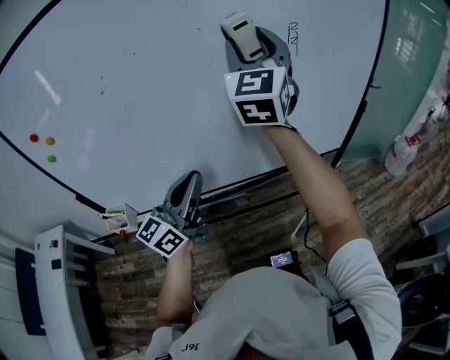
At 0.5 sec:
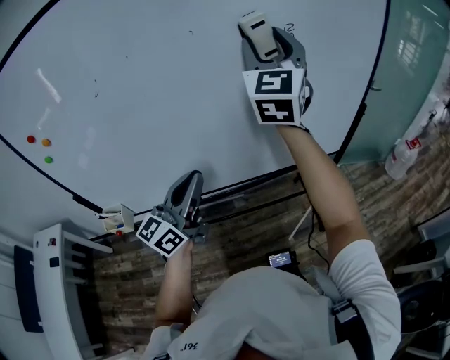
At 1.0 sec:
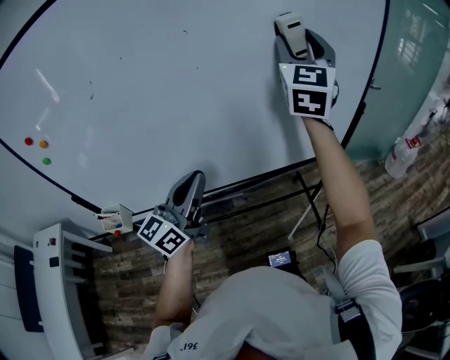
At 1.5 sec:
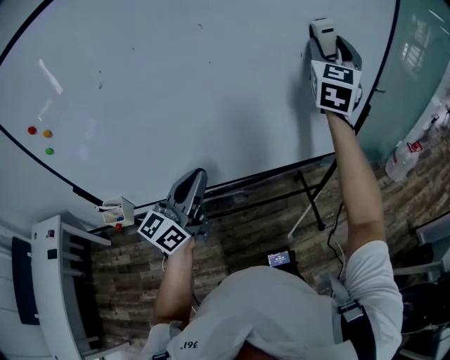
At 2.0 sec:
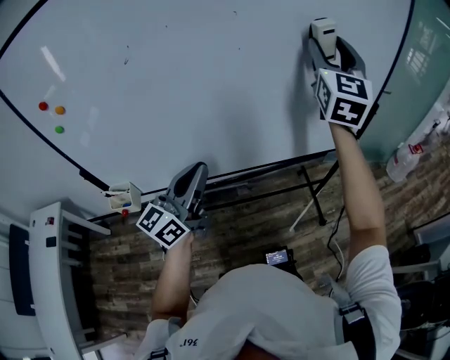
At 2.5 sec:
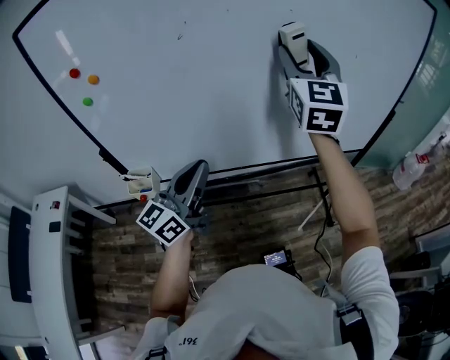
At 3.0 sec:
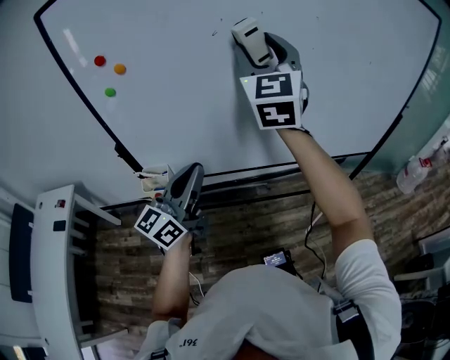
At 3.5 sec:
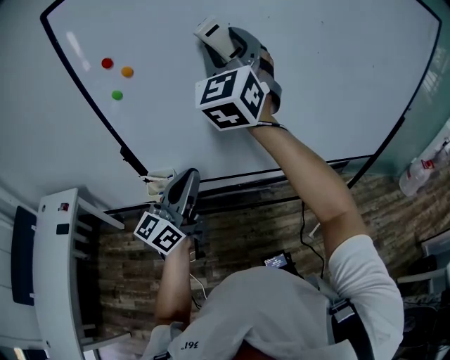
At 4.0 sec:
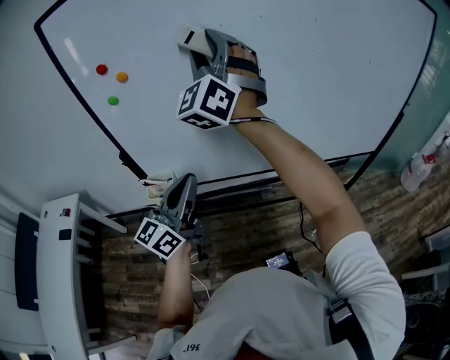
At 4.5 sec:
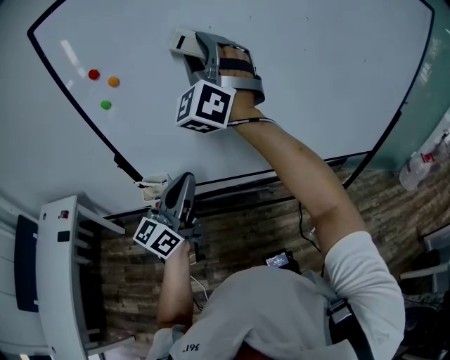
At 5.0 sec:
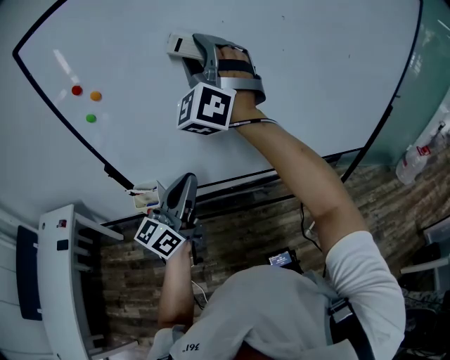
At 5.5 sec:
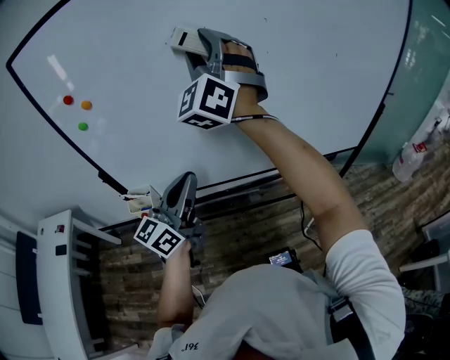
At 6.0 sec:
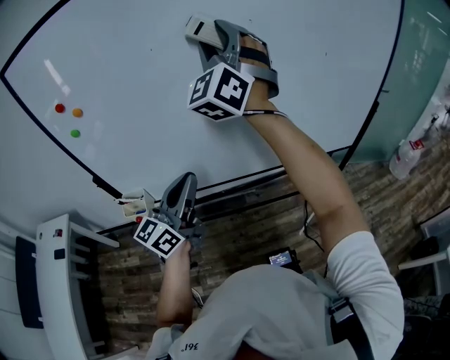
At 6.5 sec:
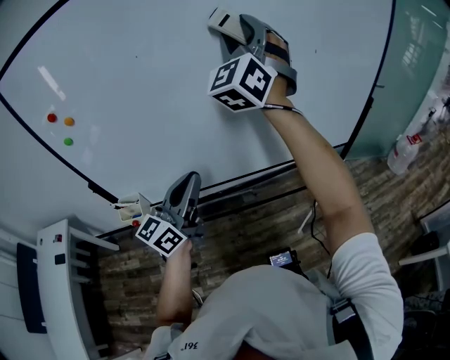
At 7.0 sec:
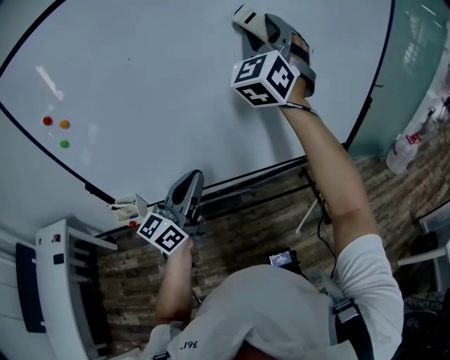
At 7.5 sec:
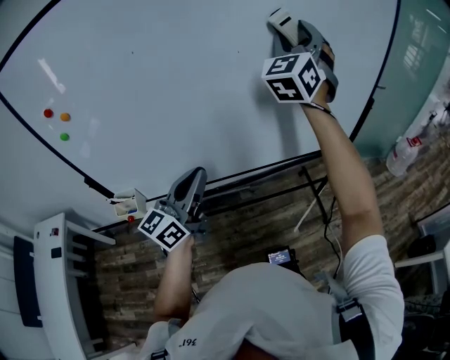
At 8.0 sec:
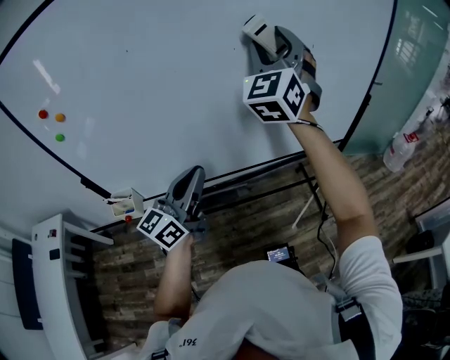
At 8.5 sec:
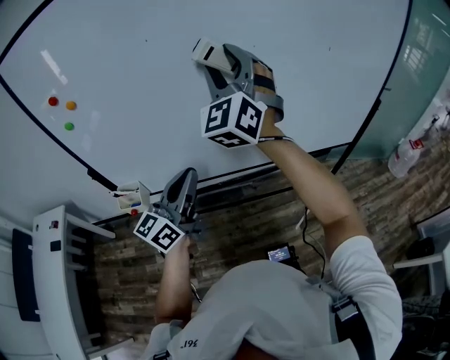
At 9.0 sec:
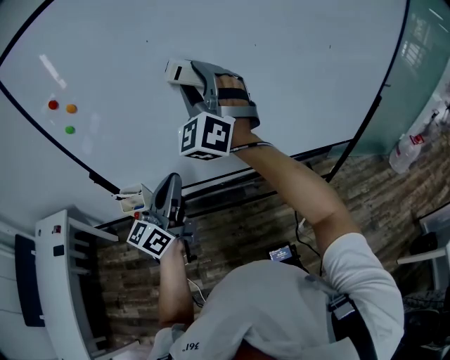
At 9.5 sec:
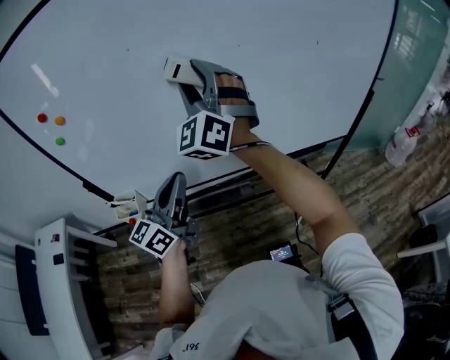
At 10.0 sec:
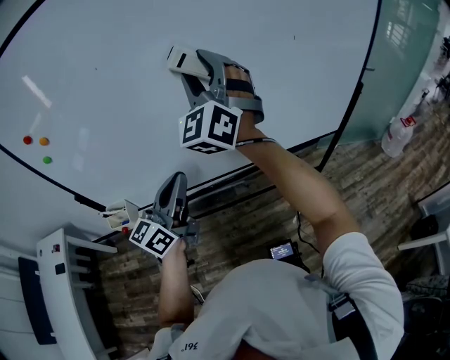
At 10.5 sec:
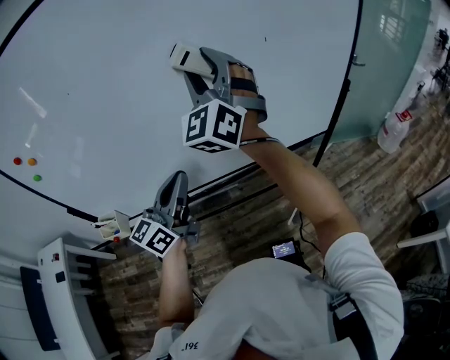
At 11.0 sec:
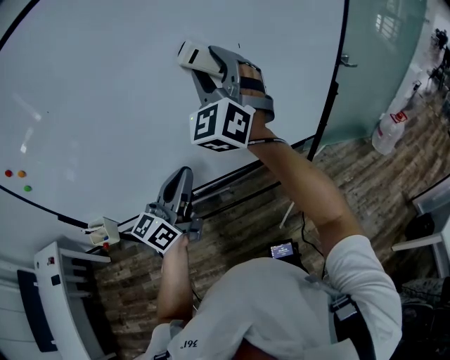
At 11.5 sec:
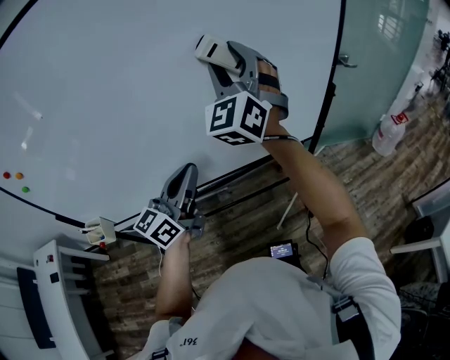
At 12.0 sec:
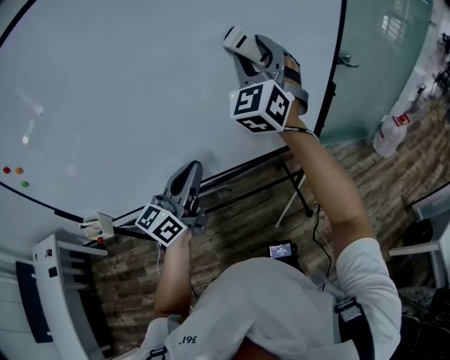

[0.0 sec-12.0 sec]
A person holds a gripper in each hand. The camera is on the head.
0.0 sec to 2.0 sec: The right gripper moves to the right, approximately 10 cm.
2.0 sec to 4.0 sec: The right gripper goes roughly 40 cm to the left, and changes its angle by about 40 degrees. Meanwhile the left gripper heads to the left and backward, covering about 20 cm.
4.0 sec to 6.0 sec: The right gripper travels to the right by approximately 15 cm. Meanwhile the left gripper is displaced to the right and forward by some 15 cm.
6.0 sec to 8.0 sec: The right gripper heads to the right, covering roughly 15 cm; the left gripper goes about 5 cm to the right.
8.0 sec to 10.0 sec: The right gripper is displaced to the left by some 10 cm; the left gripper travels to the left and back again, some 10 cm each way.
10.0 sec to 12.0 sec: Both grippers move to the right and forward, some 25 cm.

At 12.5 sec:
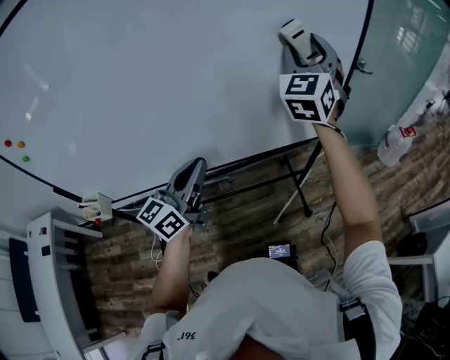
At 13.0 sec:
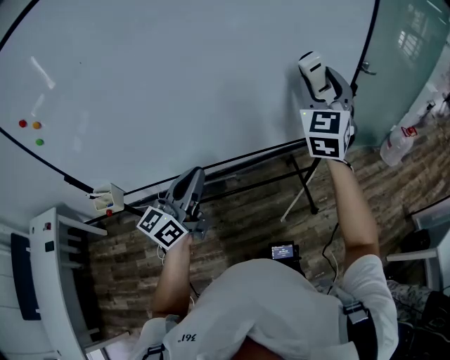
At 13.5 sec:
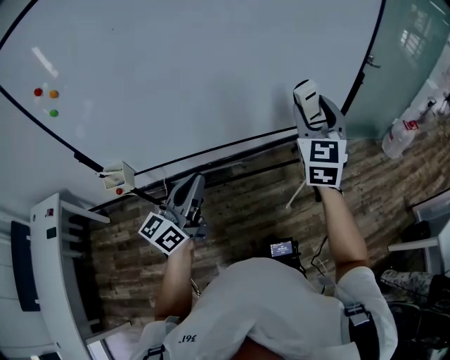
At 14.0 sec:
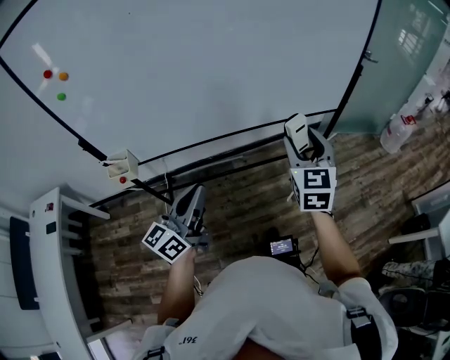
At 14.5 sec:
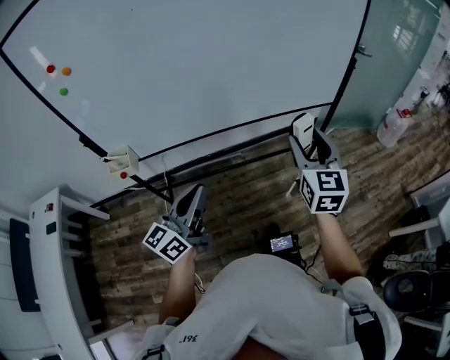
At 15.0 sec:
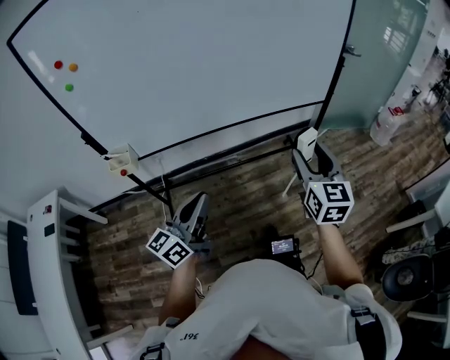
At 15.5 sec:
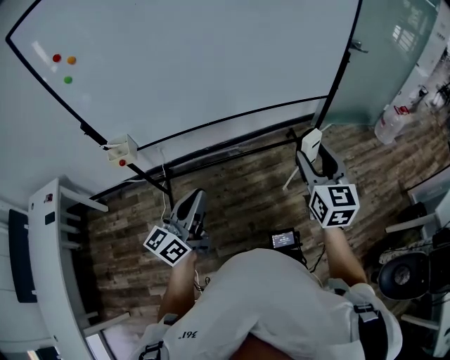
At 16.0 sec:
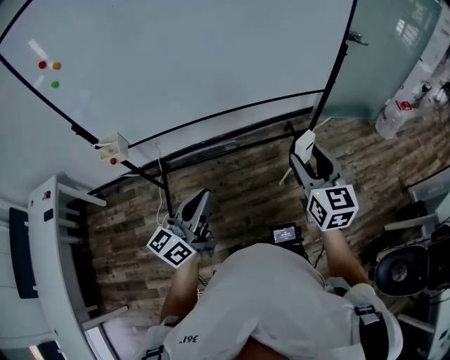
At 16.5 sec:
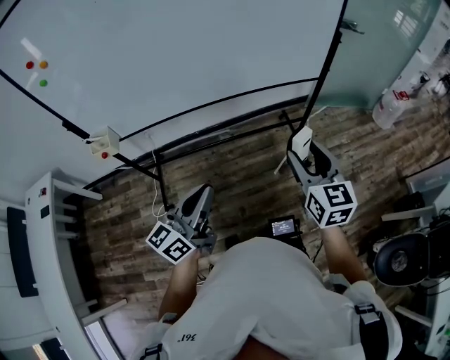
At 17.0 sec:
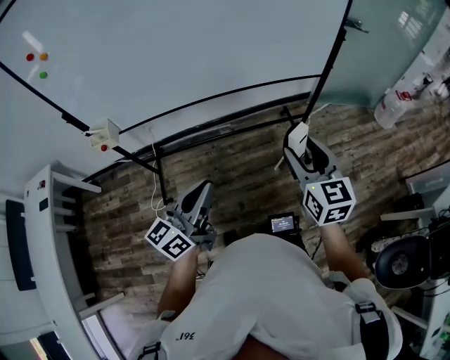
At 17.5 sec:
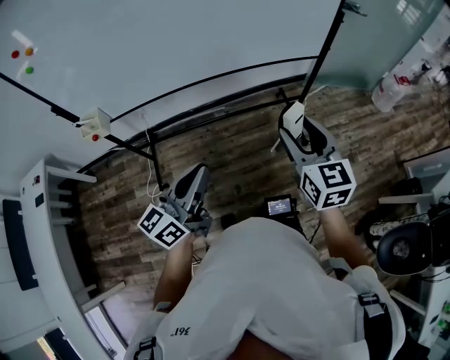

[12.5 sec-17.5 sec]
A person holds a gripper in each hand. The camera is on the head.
12.5 sec to 15.0 sec: The left gripper goes some 35 cm backward. The right gripper shifts roughly 50 cm backward and downward, and swivels approximately 40 degrees.
15.0 sec to 17.5 sec: The left gripper goes about 10 cm to the right, while the right gripper travels to the right by approximately 5 cm.

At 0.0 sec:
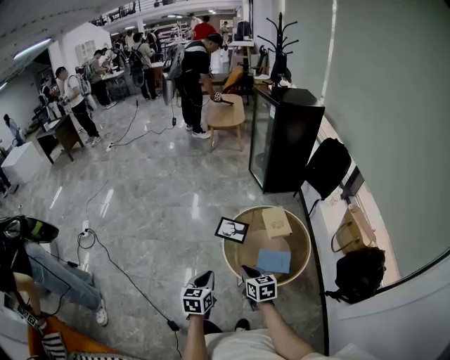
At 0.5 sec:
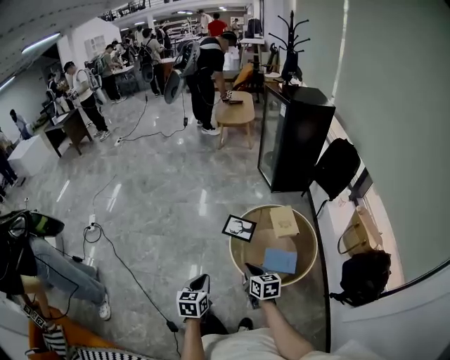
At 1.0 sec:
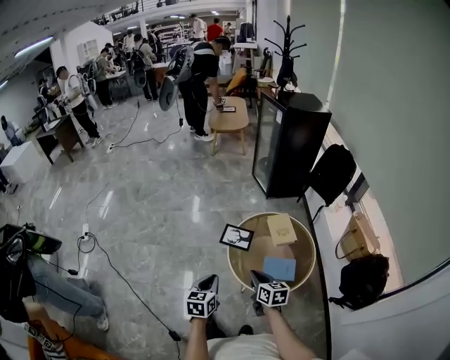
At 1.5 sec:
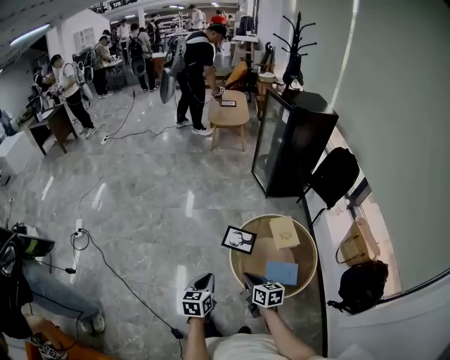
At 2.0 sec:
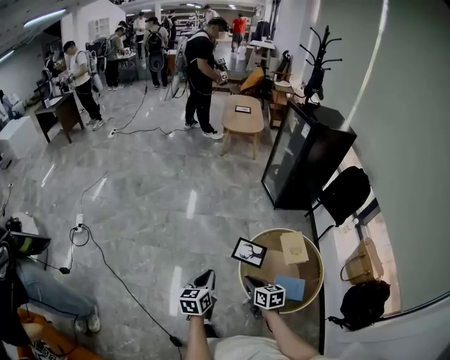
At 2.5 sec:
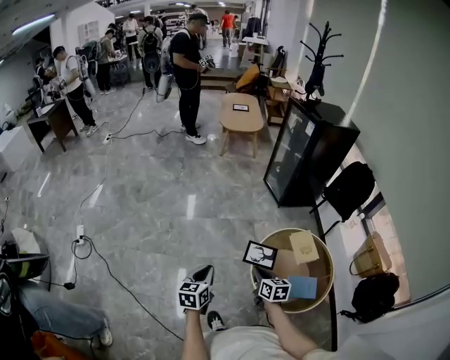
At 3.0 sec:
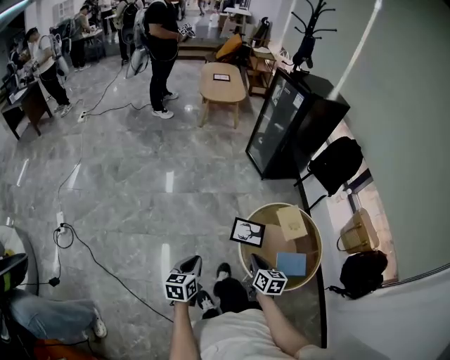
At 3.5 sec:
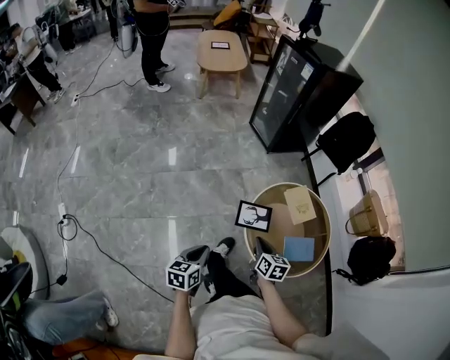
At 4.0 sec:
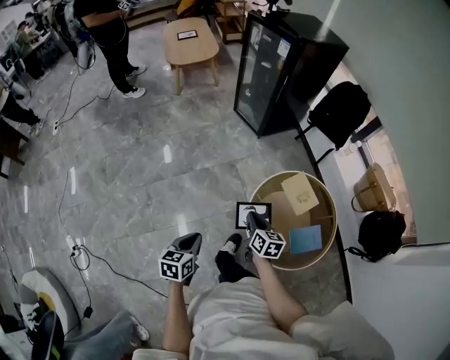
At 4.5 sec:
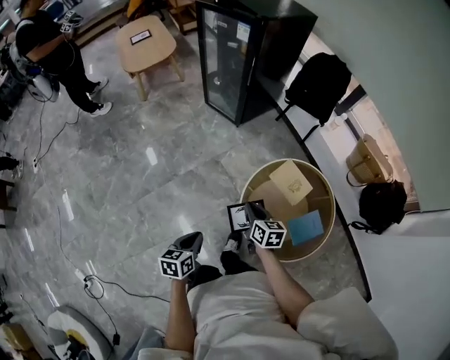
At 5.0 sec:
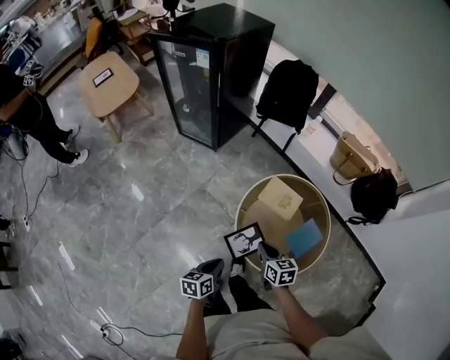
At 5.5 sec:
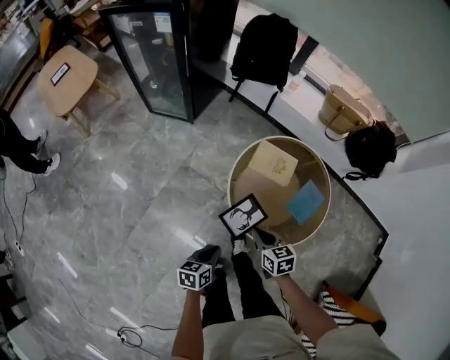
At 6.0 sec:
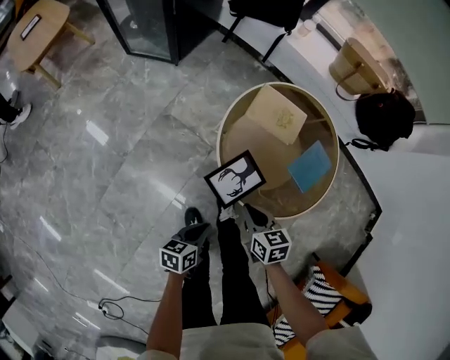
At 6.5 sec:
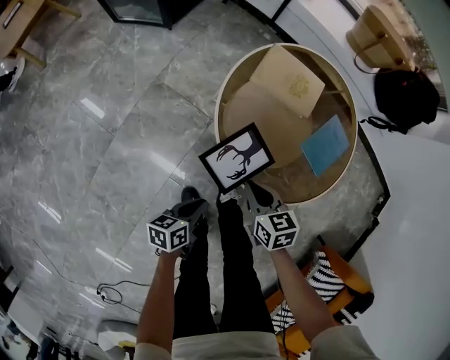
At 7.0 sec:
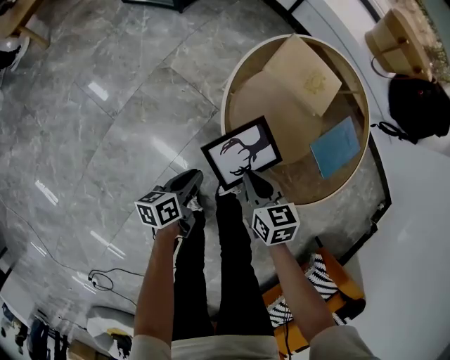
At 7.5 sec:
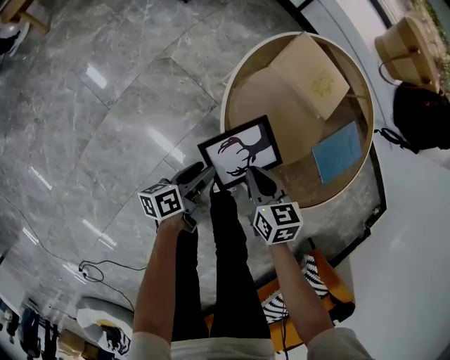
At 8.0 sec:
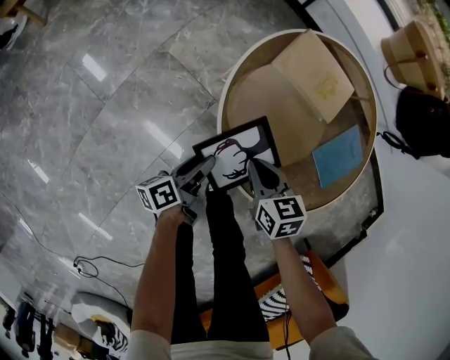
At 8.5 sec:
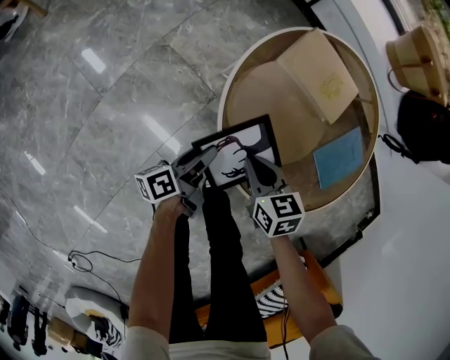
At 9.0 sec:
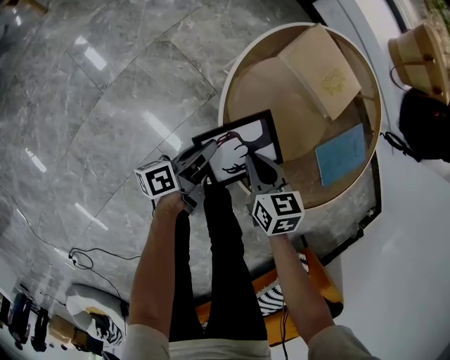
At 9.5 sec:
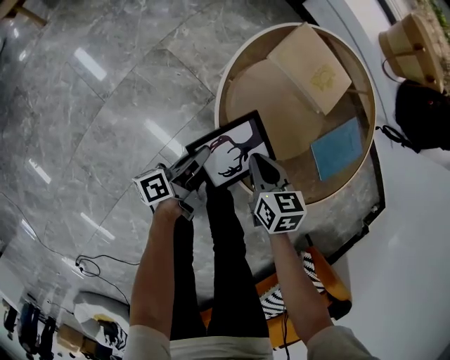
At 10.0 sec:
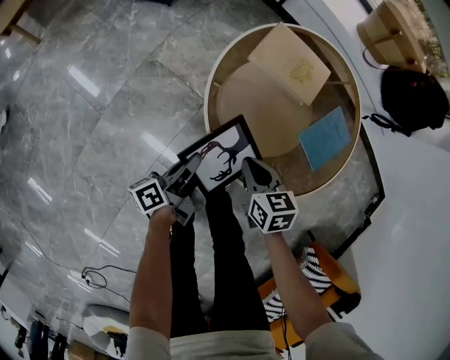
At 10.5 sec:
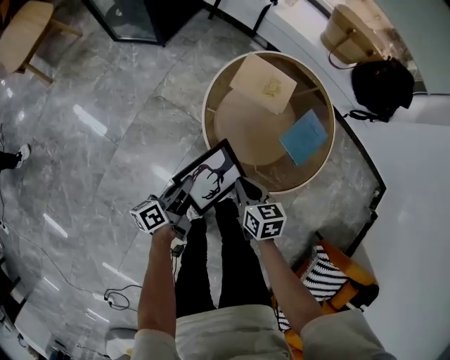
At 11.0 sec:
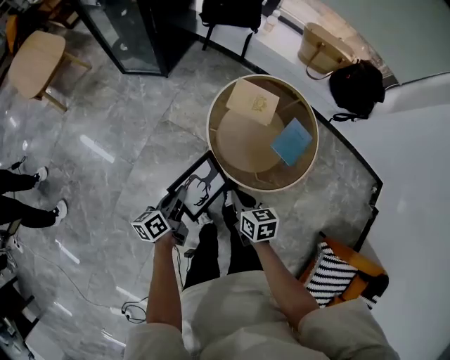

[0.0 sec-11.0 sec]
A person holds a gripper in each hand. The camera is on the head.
0.0 sec to 2.0 sec: The two grippers go some 25 cm forward and to the left.
2.0 sec to 3.5 sec: The right gripper moves roughly 15 cm, and turns by about 30 degrees; the left gripper ends up roughly 15 cm from where it was, and swivels about 30 degrees.
3.5 sec to 5.5 sec: The left gripper shifts by some 30 cm, and rotates about 50 degrees; the right gripper shifts by approximately 20 cm, and turns by some 30 degrees.
5.5 sec to 7.5 sec: Both grippers travel together downward, about 30 cm. The left gripper turns by approximately 40 degrees, and opens its fingers.
7.5 sec to 9.0 sec: The left gripper heads forward, covering roughly 5 cm, and closes its fingers.
9.0 sec to 11.0 sec: The left gripper shifts approximately 30 cm upward, and turns by some 20 degrees, while the right gripper travels upward and backward by roughly 30 cm.
